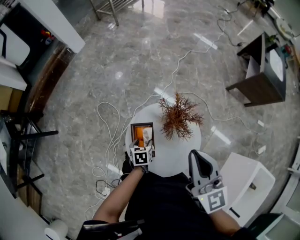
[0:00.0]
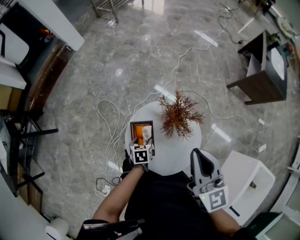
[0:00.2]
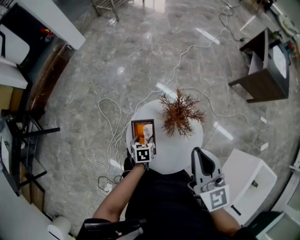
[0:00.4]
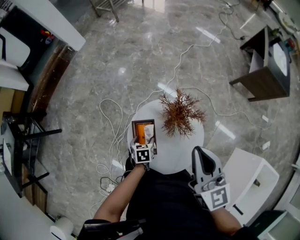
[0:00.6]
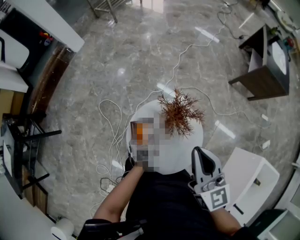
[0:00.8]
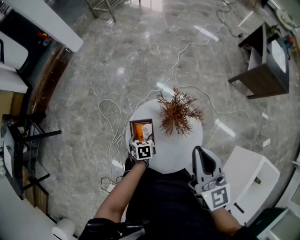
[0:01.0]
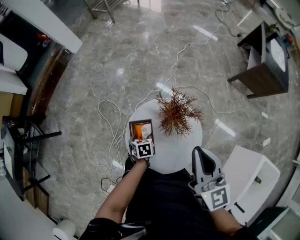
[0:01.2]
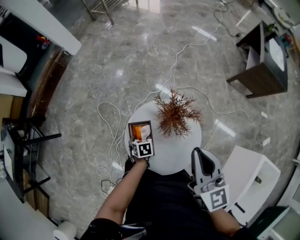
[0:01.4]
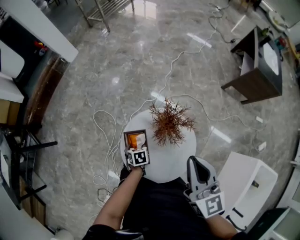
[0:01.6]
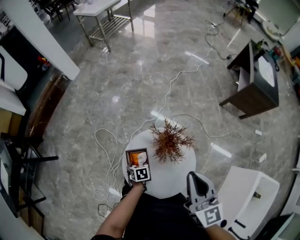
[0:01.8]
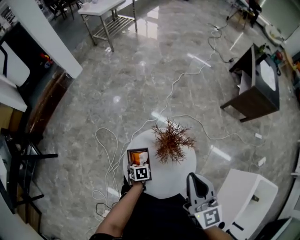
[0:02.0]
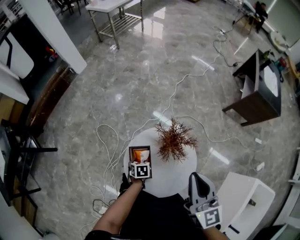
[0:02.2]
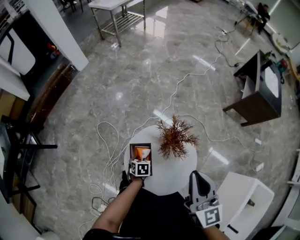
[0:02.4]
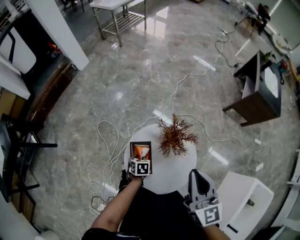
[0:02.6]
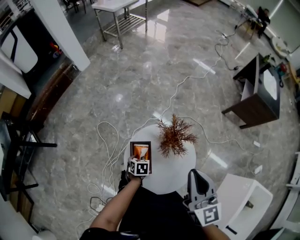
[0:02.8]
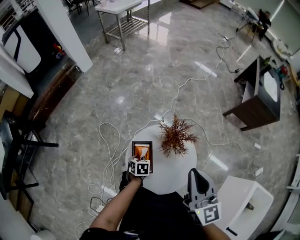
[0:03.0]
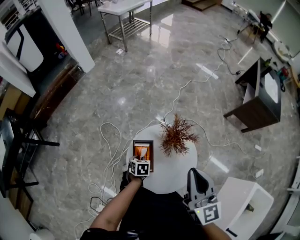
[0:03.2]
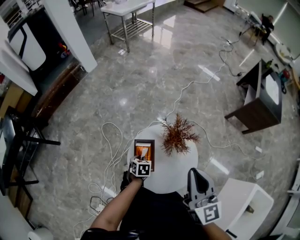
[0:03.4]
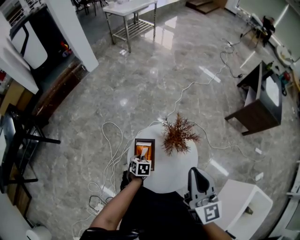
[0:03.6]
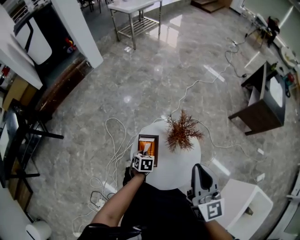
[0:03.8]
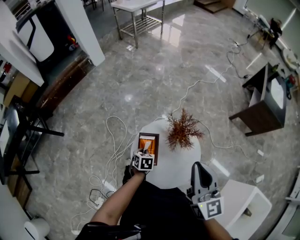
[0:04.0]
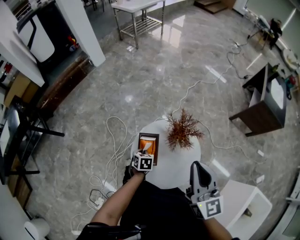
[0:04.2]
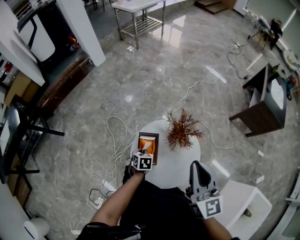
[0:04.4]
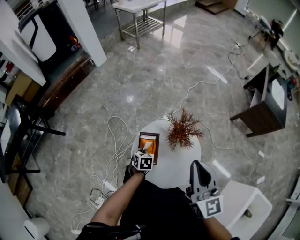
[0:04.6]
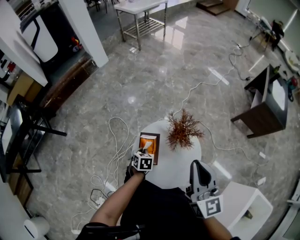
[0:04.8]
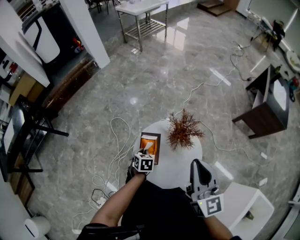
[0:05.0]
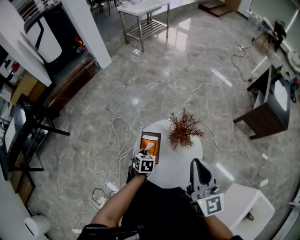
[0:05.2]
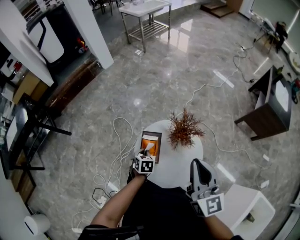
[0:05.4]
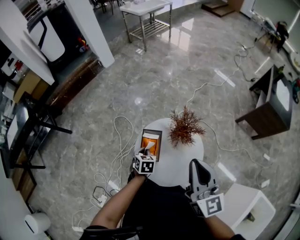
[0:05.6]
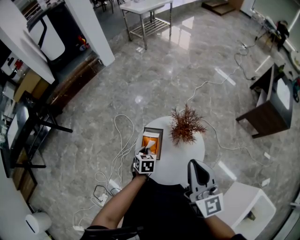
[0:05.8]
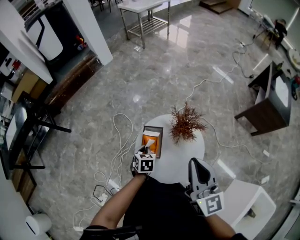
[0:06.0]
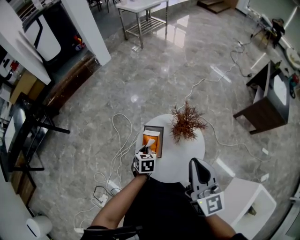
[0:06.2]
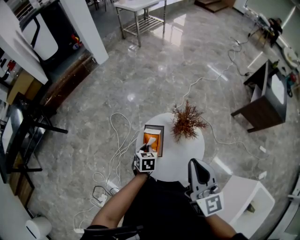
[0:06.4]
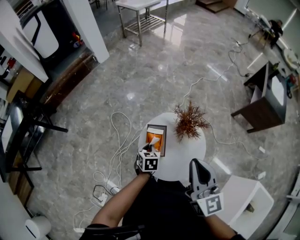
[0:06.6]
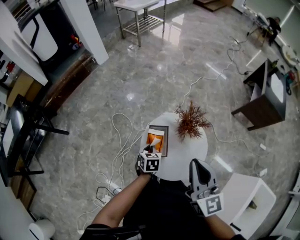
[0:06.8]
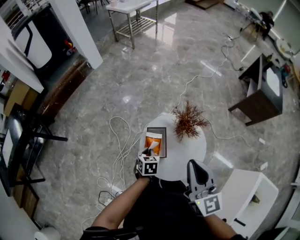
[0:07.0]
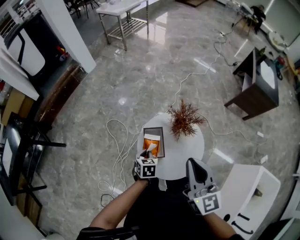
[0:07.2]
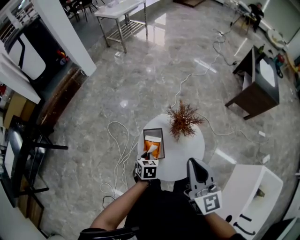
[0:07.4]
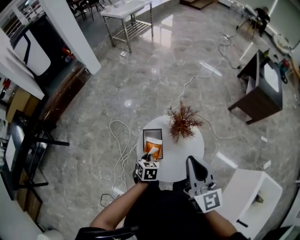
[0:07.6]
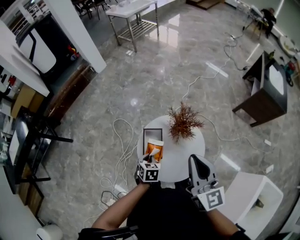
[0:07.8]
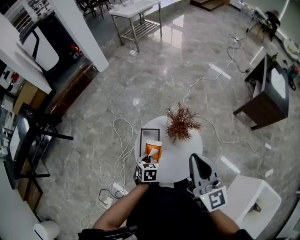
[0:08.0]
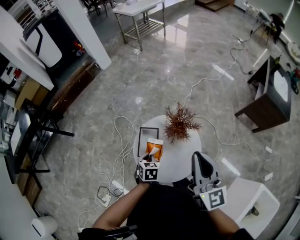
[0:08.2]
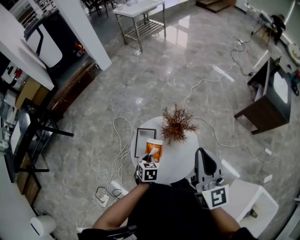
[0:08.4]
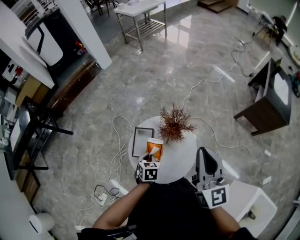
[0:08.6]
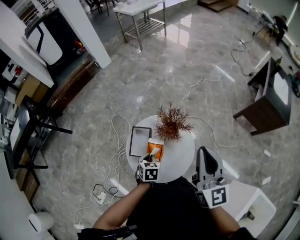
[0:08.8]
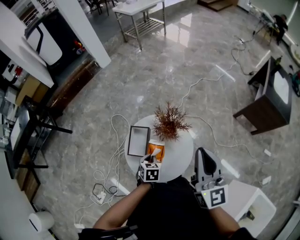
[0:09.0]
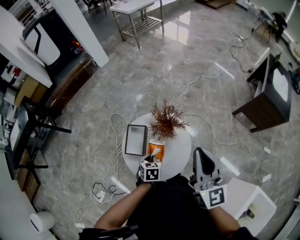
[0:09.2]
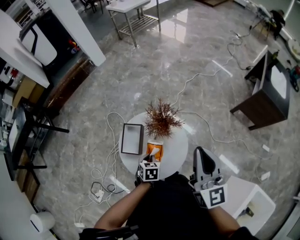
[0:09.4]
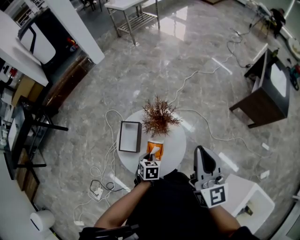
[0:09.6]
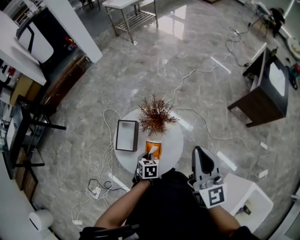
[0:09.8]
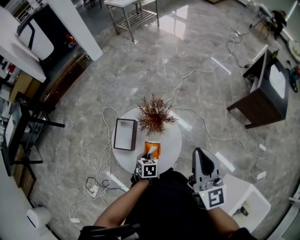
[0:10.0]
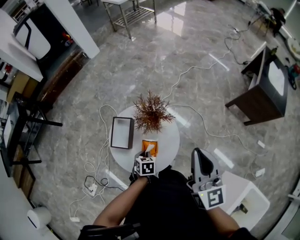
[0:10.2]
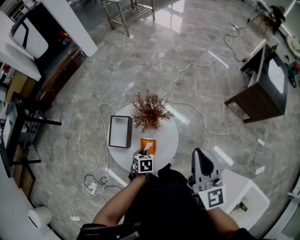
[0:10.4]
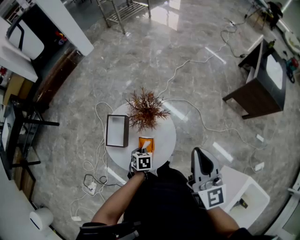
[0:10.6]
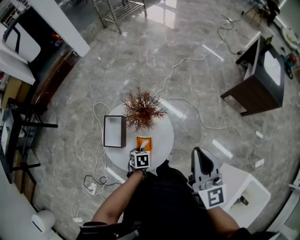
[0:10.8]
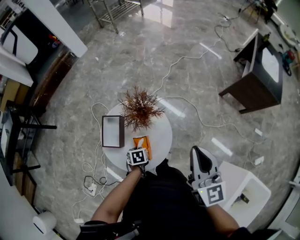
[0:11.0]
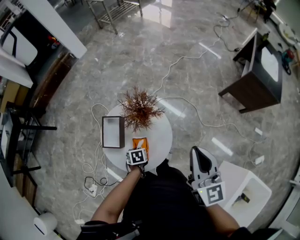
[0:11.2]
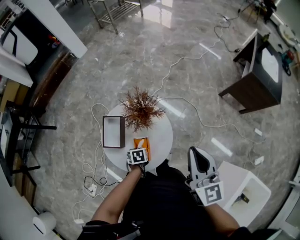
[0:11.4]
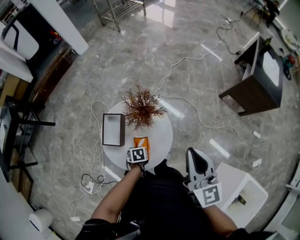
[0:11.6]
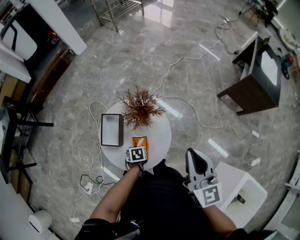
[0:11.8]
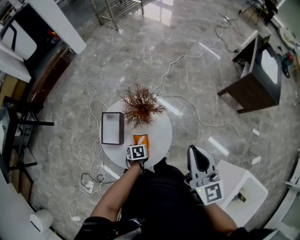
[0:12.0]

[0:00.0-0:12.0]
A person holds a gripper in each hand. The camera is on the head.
0:00.0 to 0:01.6: There are only small adjustments of the grippers.
0:01.6 to 0:03.0: The left gripper closes.
0:03.0 to 0:04.4: There are only small adjustments of the grippers.
0:04.4 to 0:06.0: The left gripper travels upward by about 5 cm.
0:07.6 to 0:09.0: The two grippers go some 15 cm to the right.
0:09.0 to 0:10.4: The left gripper heads downward and to the right, covering approximately 10 cm. Meanwhile the right gripper goes roughly 10 cm to the right.
0:10.4 to 0:12.0: The left gripper is displaced downward by about 5 cm.

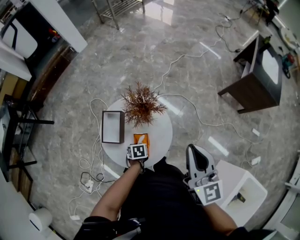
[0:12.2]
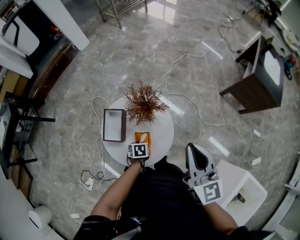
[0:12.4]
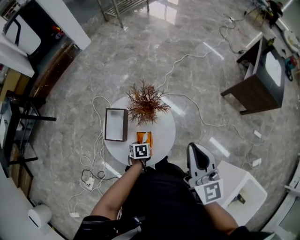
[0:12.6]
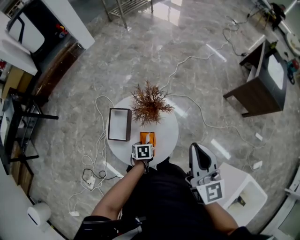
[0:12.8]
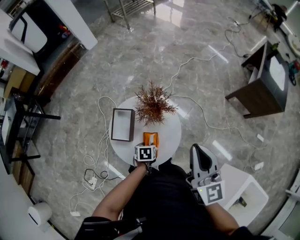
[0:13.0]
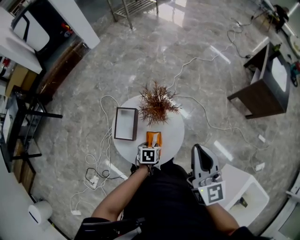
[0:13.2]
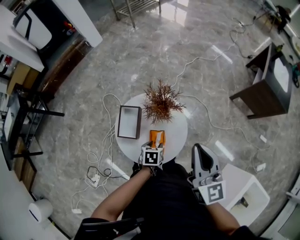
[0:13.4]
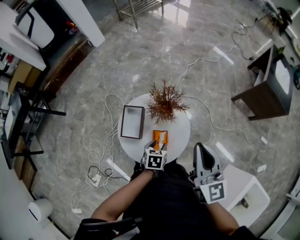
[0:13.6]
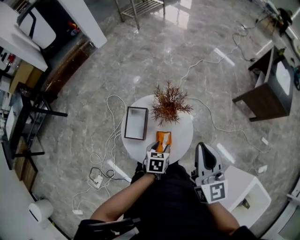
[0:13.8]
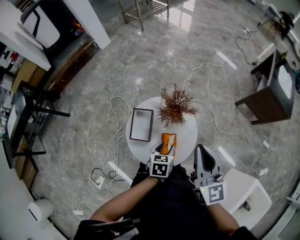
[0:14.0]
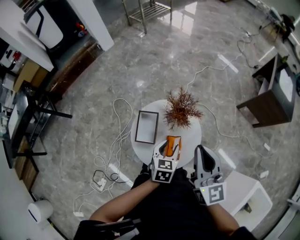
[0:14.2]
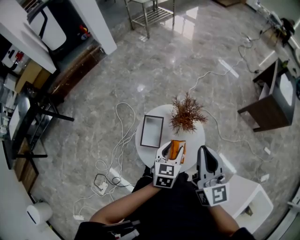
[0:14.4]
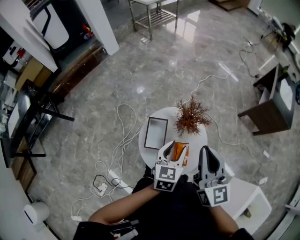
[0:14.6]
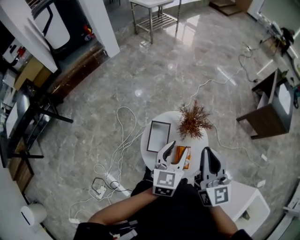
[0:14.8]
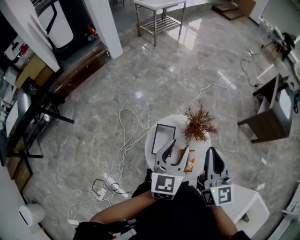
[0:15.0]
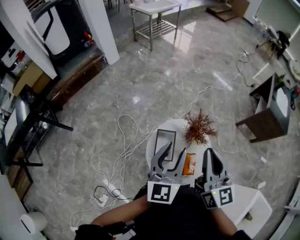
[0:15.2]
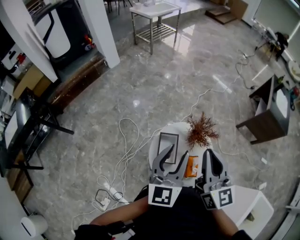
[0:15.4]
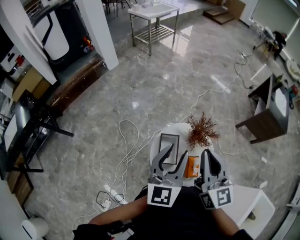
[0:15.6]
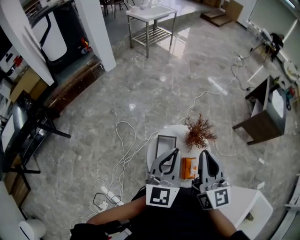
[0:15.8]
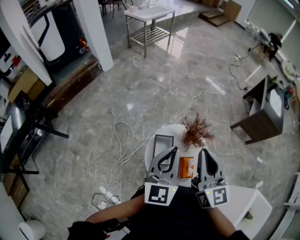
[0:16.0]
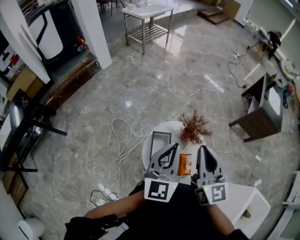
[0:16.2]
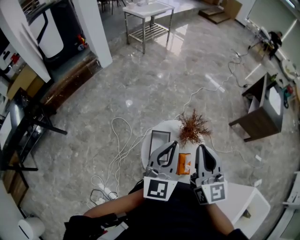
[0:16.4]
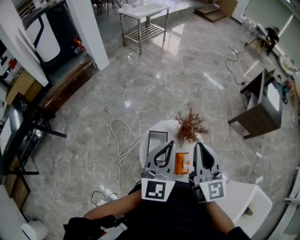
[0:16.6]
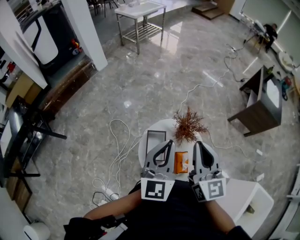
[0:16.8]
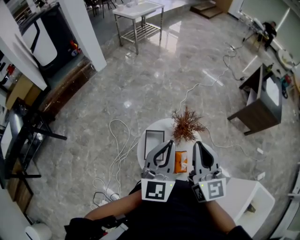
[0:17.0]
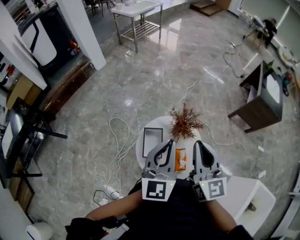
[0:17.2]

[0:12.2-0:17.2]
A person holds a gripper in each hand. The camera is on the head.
0:12.2 to 0:13.8: The left gripper shifts roughly 15 cm upward, swivels some 20 degrees, and opens up. Meanwhile the right gripper shifts by roughly 10 cm.
0:13.8 to 0:15.6: The right gripper goes some 20 cm to the left. The left gripper moves upward and to the left, about 35 cm, and points its fingers roughly 50 degrees further upward.
0:15.6 to 0:17.2: The two grippers go some 5 cm to the right. The left gripper closes.

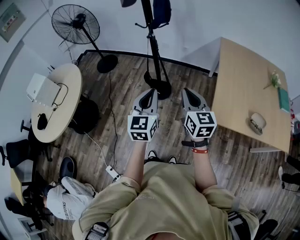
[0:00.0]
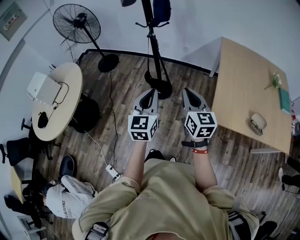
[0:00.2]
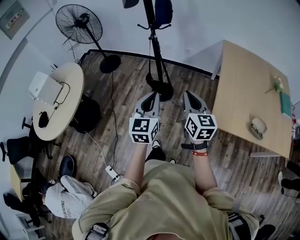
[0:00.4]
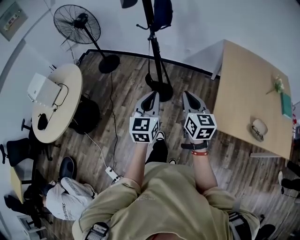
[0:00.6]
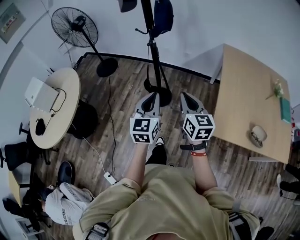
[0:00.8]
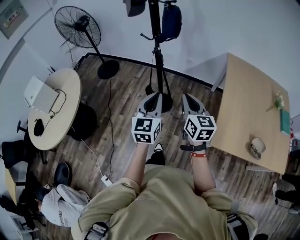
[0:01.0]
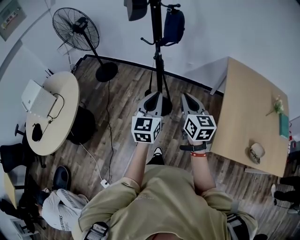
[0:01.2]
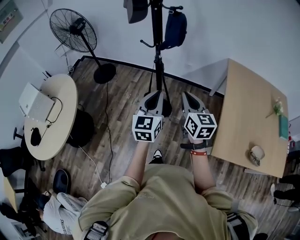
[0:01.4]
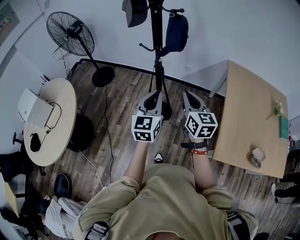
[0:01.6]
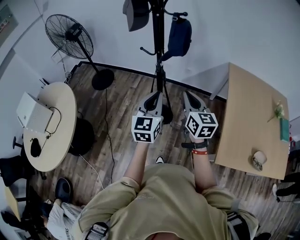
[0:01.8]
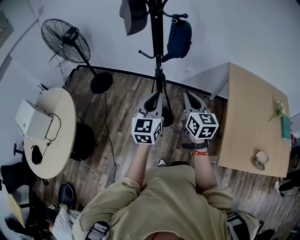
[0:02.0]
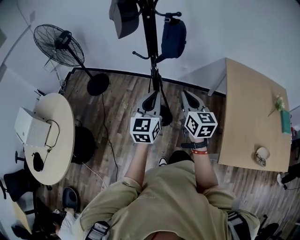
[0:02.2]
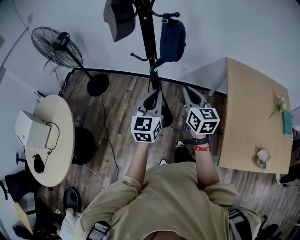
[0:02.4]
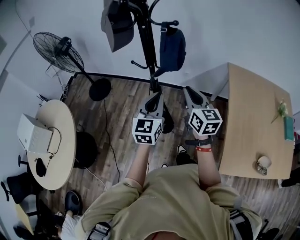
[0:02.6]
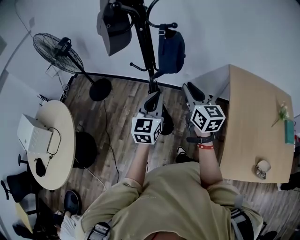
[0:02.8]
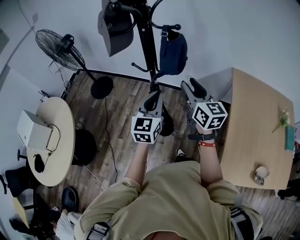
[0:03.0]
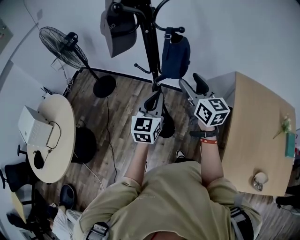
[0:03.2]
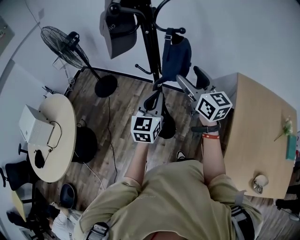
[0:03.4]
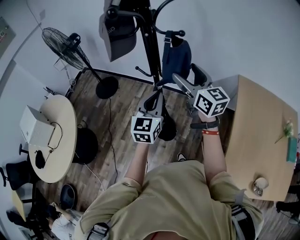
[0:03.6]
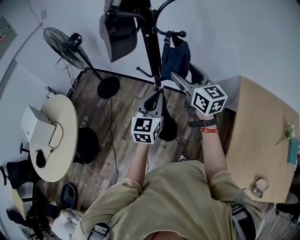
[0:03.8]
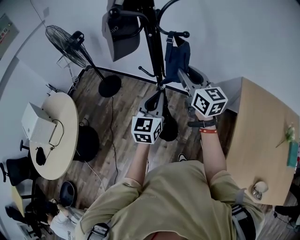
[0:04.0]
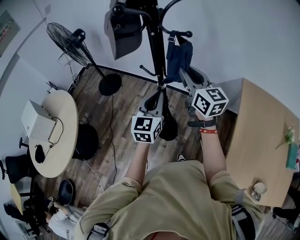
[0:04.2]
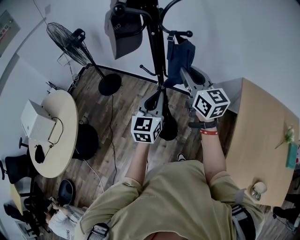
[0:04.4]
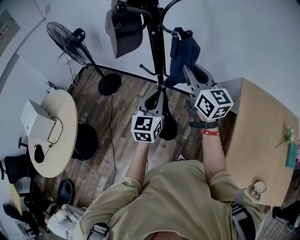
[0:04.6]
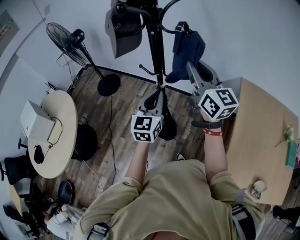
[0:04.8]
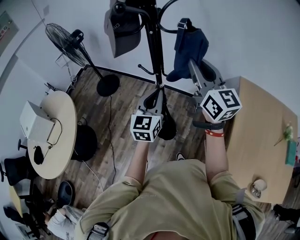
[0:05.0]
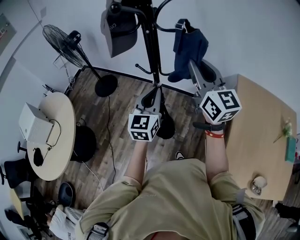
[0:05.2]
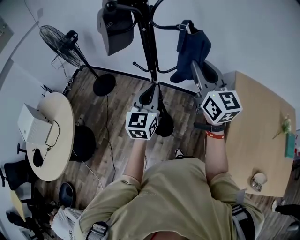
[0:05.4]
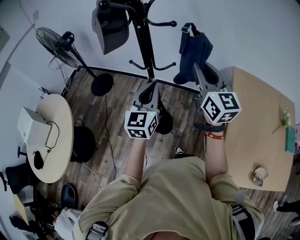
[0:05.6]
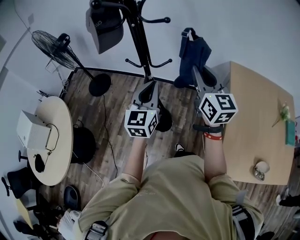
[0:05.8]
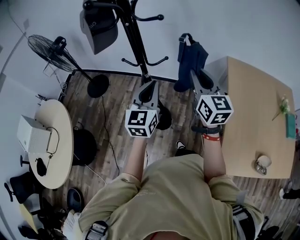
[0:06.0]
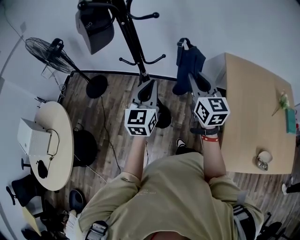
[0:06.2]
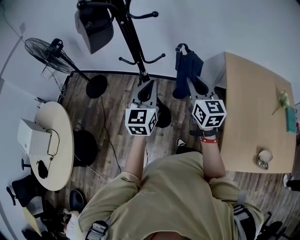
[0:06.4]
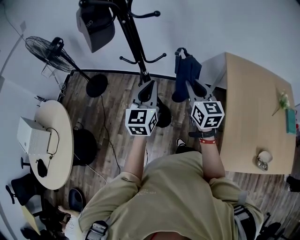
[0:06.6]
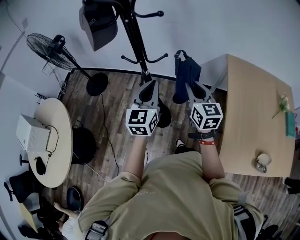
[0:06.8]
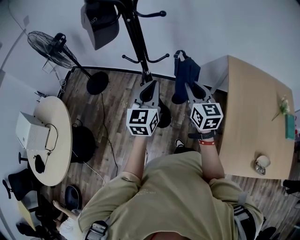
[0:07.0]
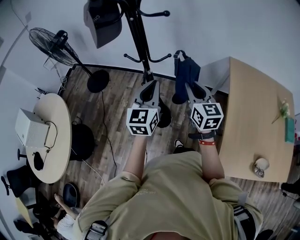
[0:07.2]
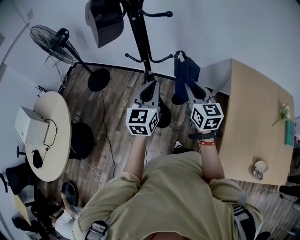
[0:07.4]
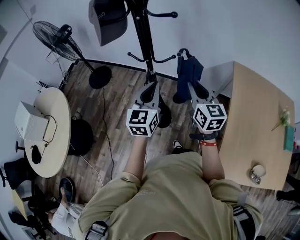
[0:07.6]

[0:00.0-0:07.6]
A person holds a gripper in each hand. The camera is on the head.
0:00.0 to 0:01.6: The grippers both shift forward by approximately 25 cm.
0:01.6 to 0:03.0: The two grippers go approximately 20 cm forward. The right gripper opens its fingers.
0:03.0 to 0:04.6: The right gripper is displaced upward and forward by roughly 10 cm, and opens, then closes again.
0:04.6 to 0:06.0: The left gripper changes place by roughly 5 cm, while the right gripper heads to the right, backward and downward, covering some 15 cm, and rotates some 20 degrees.
0:06.0 to 0:07.6: The right gripper travels downward by roughly 5 cm.
